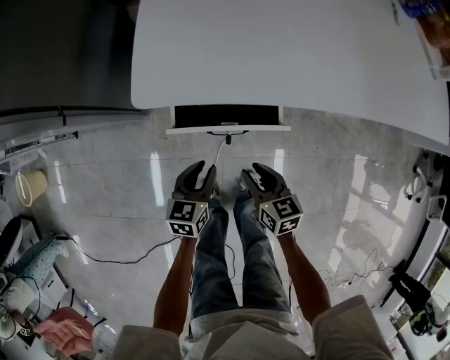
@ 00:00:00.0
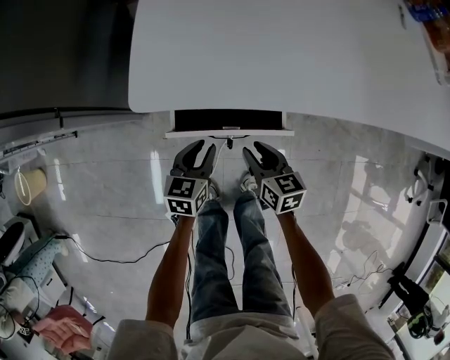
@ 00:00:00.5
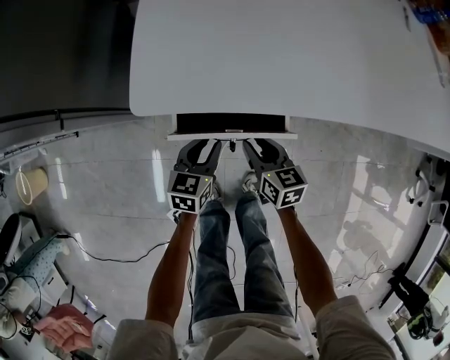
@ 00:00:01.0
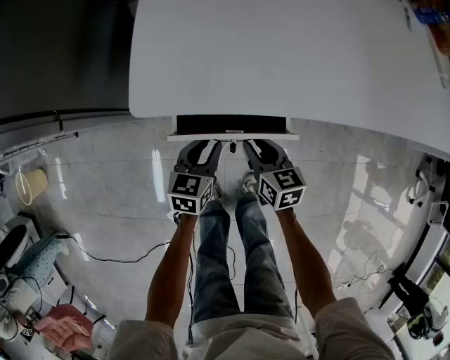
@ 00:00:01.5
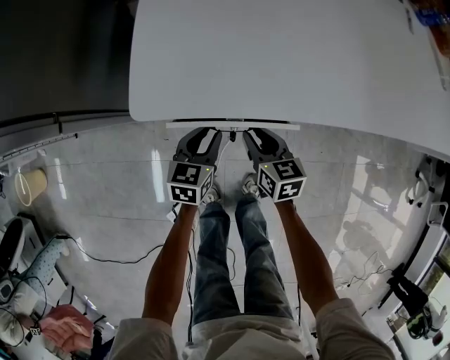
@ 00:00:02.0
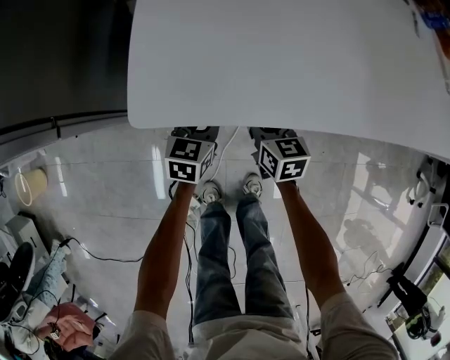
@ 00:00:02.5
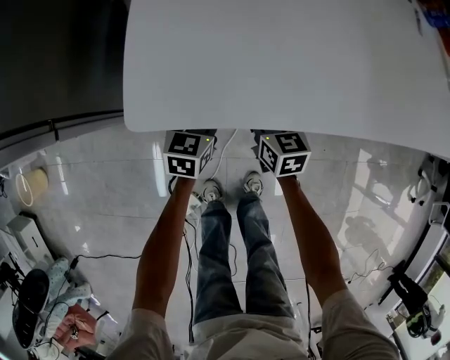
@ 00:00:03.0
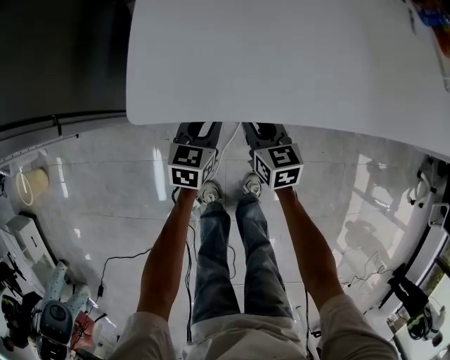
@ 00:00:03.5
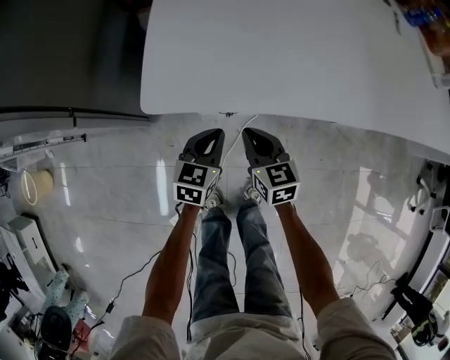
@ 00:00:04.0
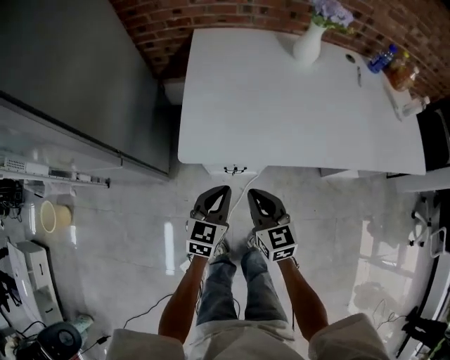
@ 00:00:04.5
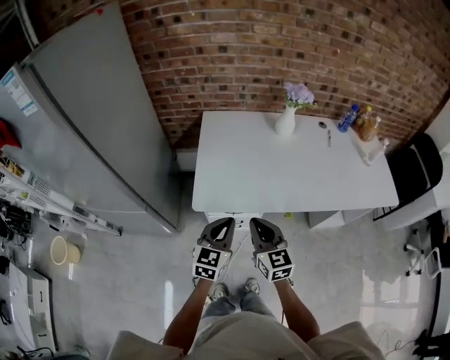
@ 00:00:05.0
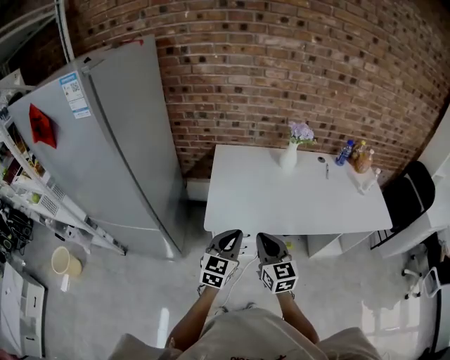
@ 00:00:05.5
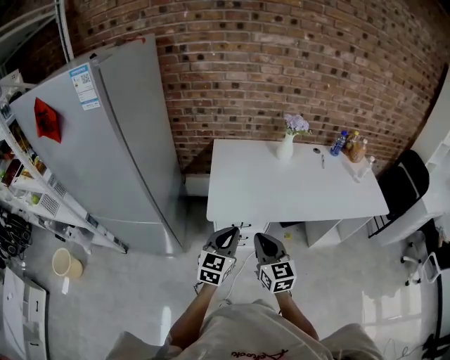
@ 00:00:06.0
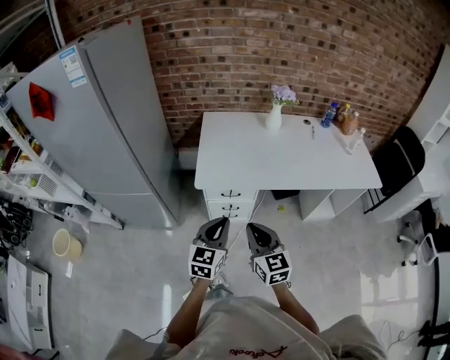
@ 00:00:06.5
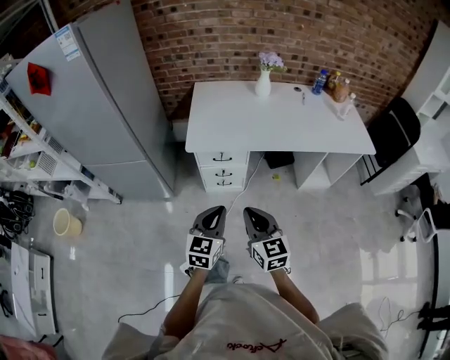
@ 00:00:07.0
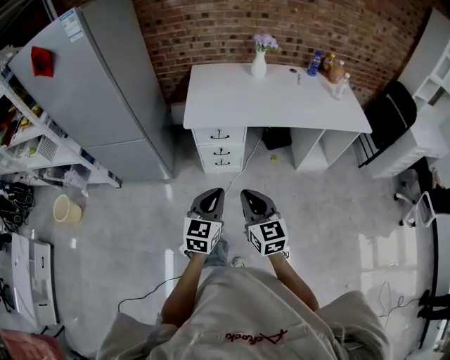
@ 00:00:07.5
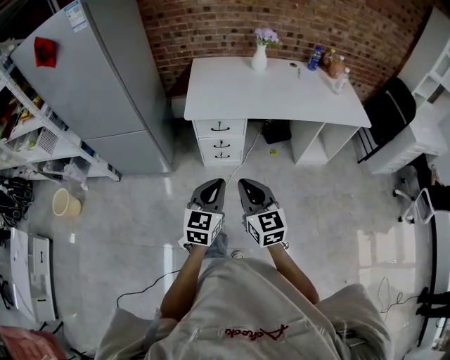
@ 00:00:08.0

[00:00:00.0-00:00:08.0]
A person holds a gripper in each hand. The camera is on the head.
00:00:00.0 to 00:00:02.0: The two grippers go roughly 10 cm forward.
00:00:02.0 to 00:00:04.0: The left gripper travels forward and back again, approximately 10 cm each way, and closes up. The right gripper heads upward, covering approximately 5 cm, moves roughly 10 cm forward and comes back, and closes up.
00:00:04.0 to 00:00:06.0: Both grippers move upward, about 40 cm. The left gripper rotates some 30 degrees, while the right gripper rotates about 30 degrees.
00:00:06.0 to 00:00:08.0: Both grippers travel together backward, approximately 30 cm.

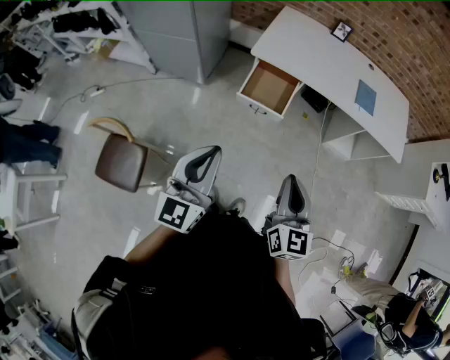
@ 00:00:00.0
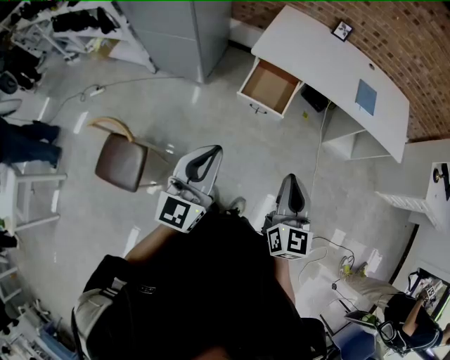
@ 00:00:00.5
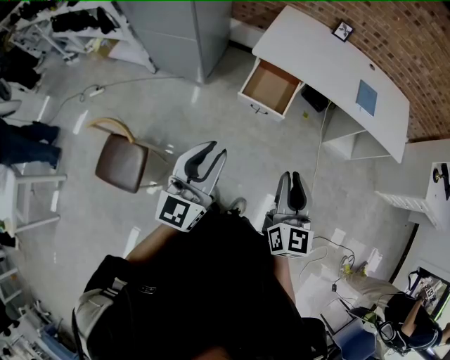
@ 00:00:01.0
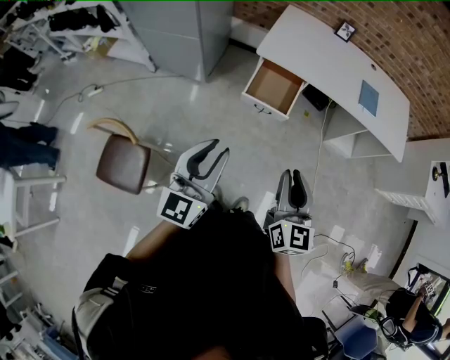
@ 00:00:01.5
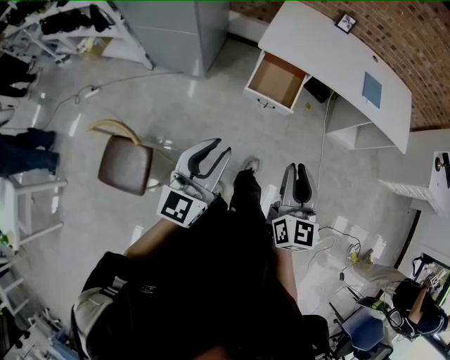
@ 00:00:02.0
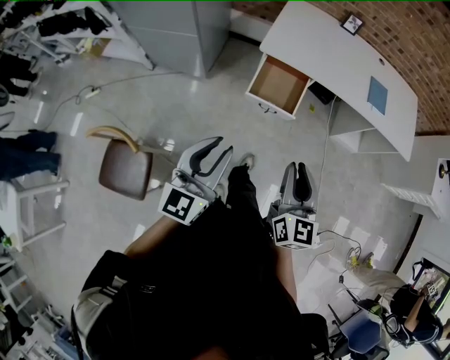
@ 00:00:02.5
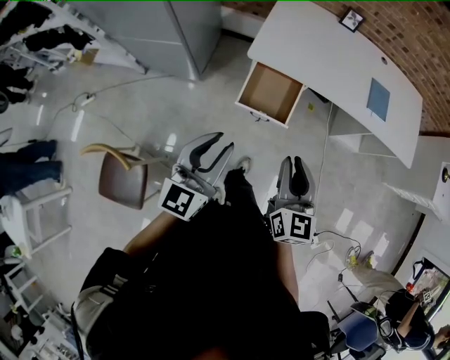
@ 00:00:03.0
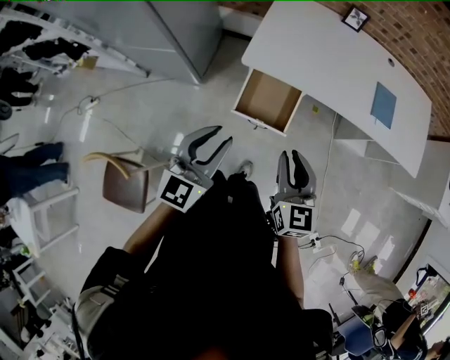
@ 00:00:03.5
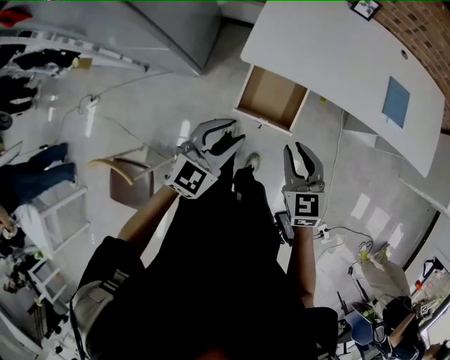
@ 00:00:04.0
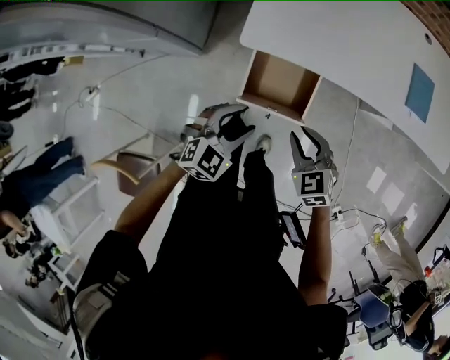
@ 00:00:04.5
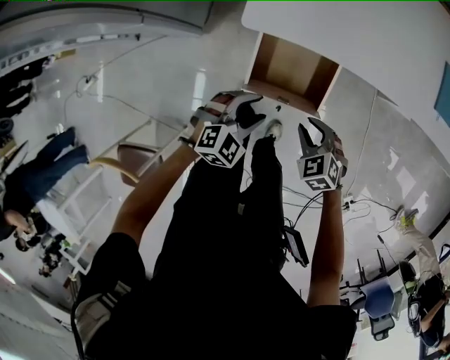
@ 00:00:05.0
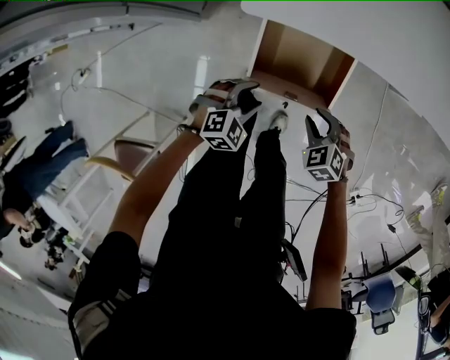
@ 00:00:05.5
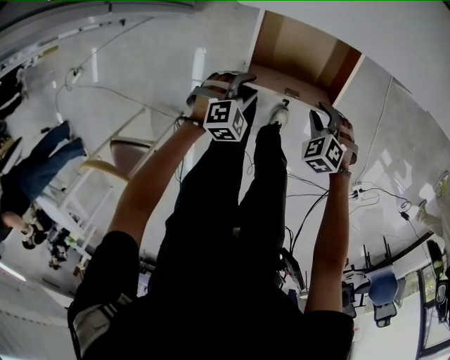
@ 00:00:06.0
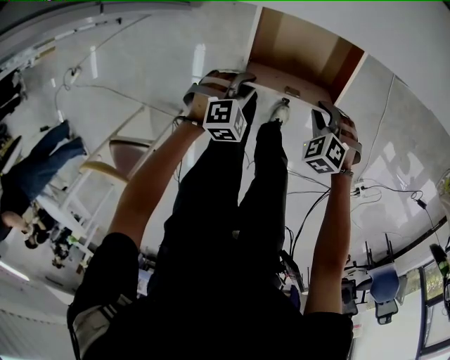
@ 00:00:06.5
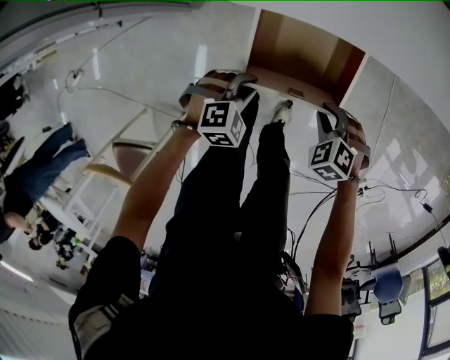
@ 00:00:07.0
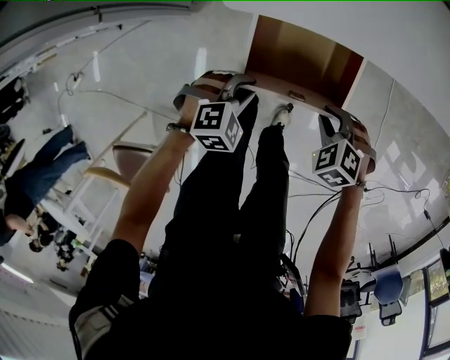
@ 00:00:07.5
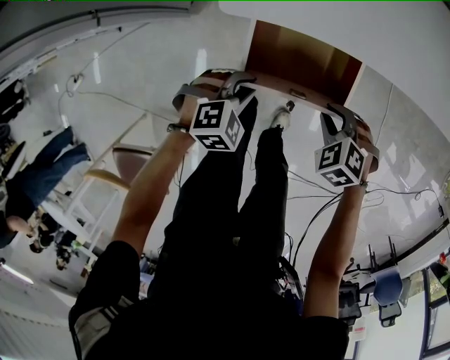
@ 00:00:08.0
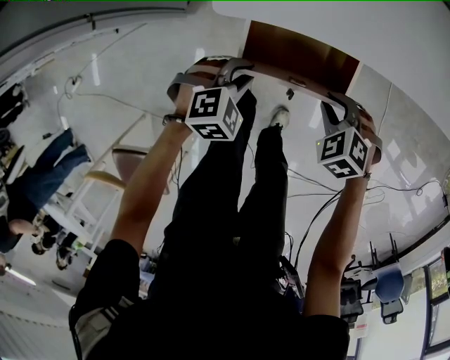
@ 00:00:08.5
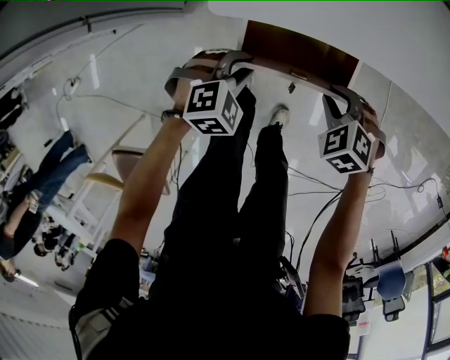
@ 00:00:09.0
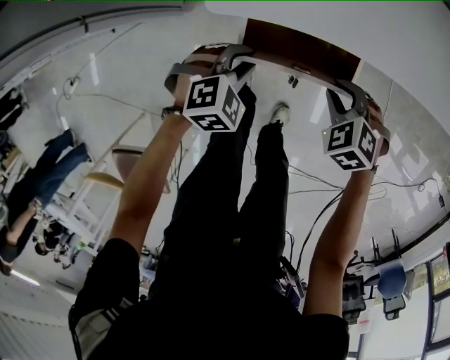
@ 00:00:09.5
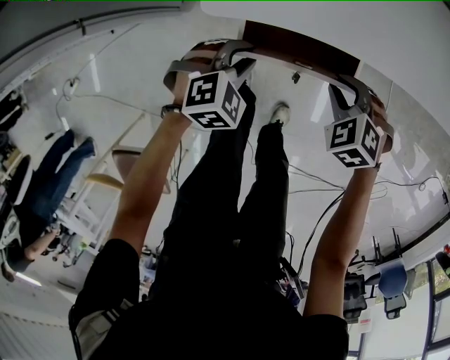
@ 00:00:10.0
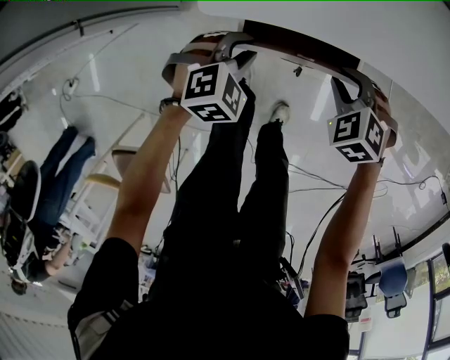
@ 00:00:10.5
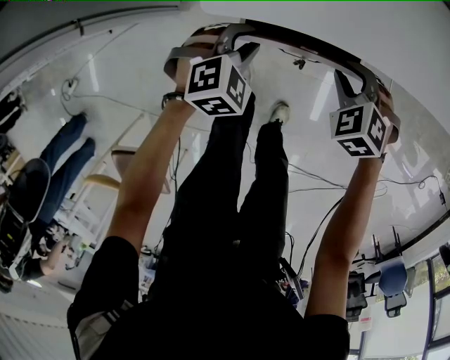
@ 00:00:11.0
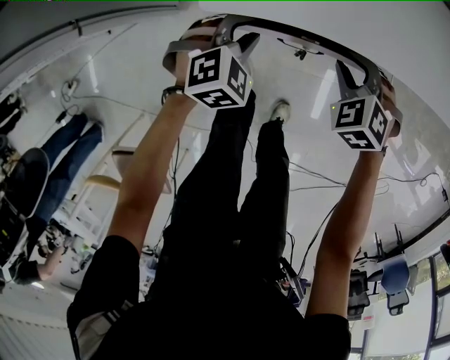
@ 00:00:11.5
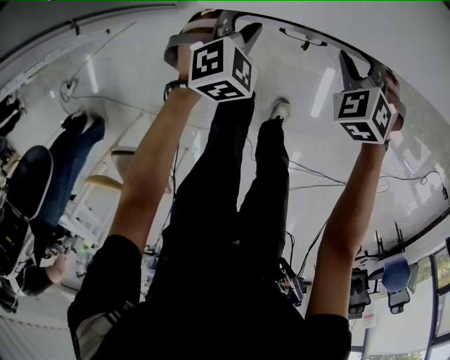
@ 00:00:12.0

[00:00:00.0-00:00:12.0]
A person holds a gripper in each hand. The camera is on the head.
00:00:00.0 to 00:00:02.0: The two grippers go approximately 5 cm to the left. The left gripper opens. The right gripper opens up.
00:00:02.0 to 00:00:04.0: The two grippers go roughly 30 cm forward. The right gripper changes its angle by roughly 30 degrees; the left gripper changes its angle by roughly 40 degrees.
00:00:04.0 to 00:00:06.0: Both grippers travel together downward, about 40 cm. The left gripper tips its fingers downward by approximately 40 degrees. The right gripper points its fingers about 40 degrees further downward.
00:00:06.0 to 00:00:08.0: Both grippers move upward, some 5 cm.
00:00:08.0 to 00:00:10.0: Both grippers move forward, about 10 cm.
00:00:10.0 to 00:00:12.0: Both grippers travel together forward, roughly 5 cm.

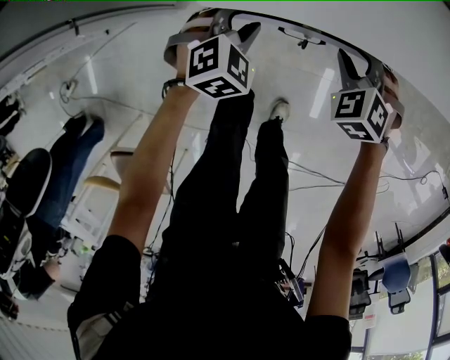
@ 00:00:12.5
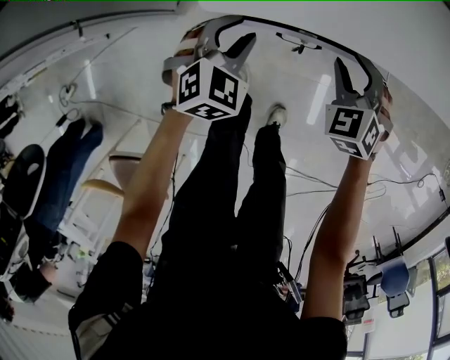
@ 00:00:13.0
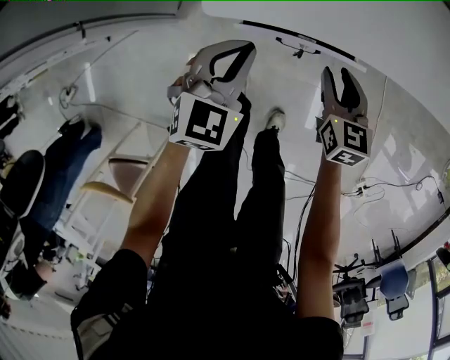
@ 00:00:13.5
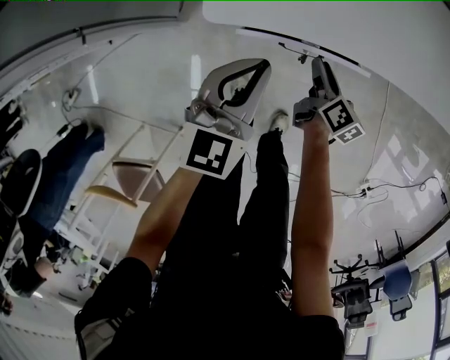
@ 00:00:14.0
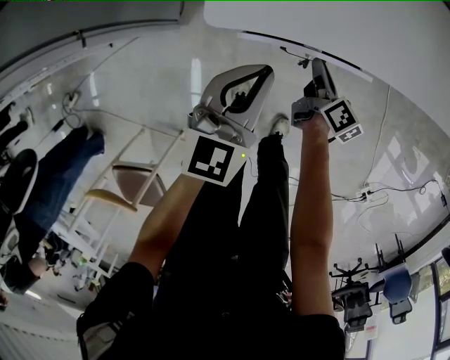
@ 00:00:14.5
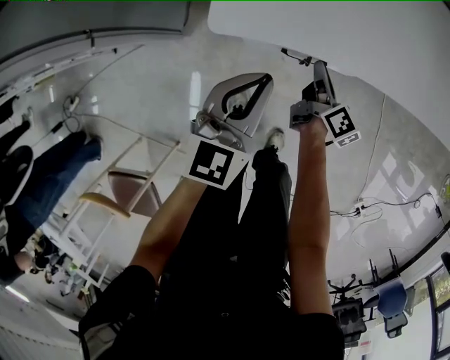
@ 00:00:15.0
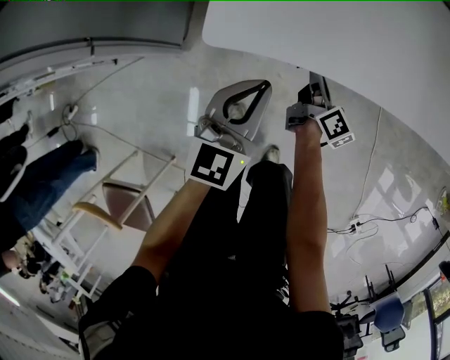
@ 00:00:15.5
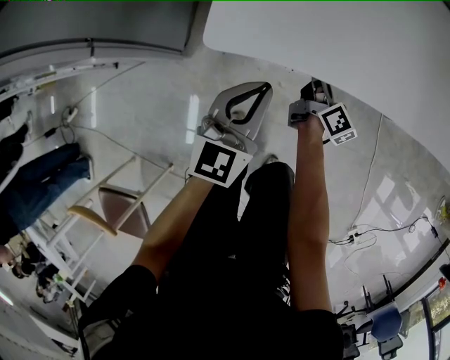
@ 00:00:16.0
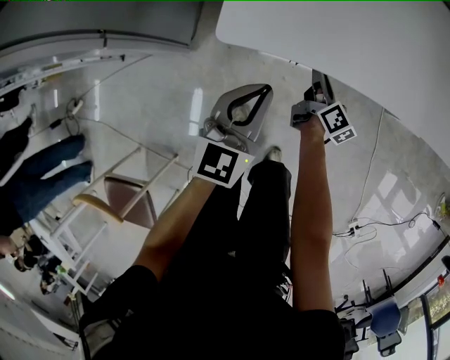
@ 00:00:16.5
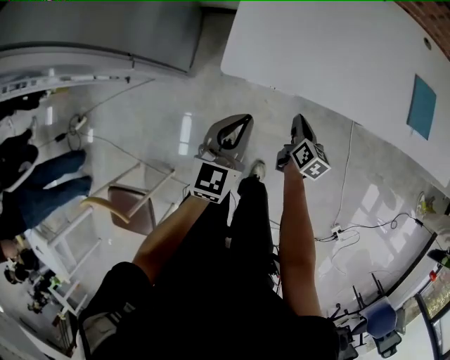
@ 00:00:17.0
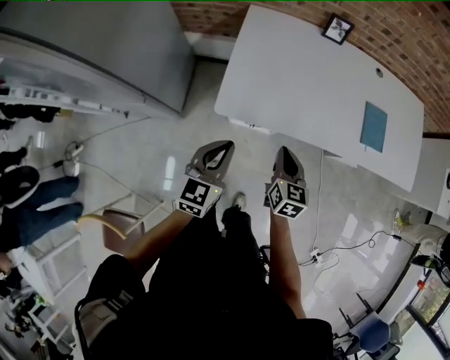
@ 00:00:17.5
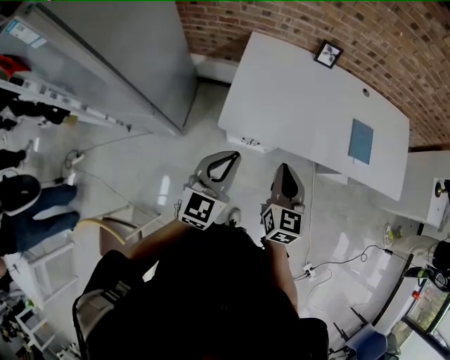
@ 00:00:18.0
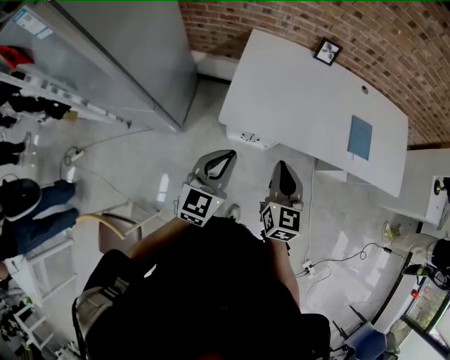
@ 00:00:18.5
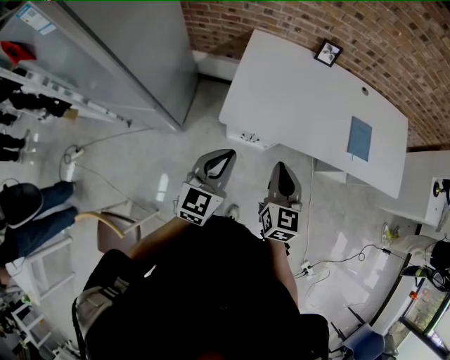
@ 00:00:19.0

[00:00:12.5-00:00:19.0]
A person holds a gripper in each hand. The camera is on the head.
00:00:12.5 to 00:00:14.5: The right gripper goes roughly 5 cm downward, and rolls clockwise, seen from behind, by some 110 degrees. Meanwhile the left gripper is displaced upward and backward by roughly 15 cm, turns by about 40 degrees, and closes its fingers.
00:00:14.5 to 00:00:17.0: Both grippers move upward, approximately 5 cm. The right gripper reaches roughly 10 cm forward, then returns, and changes its angle by about 20 degrees.
00:00:17.0 to 00:00:19.0: The right gripper goes approximately 35 cm upward, and changes its angle by about 40 degrees. The left gripper heads upward, covering roughly 20 cm.
